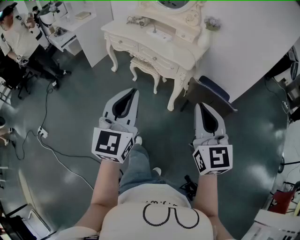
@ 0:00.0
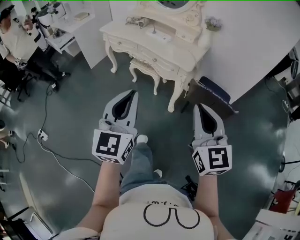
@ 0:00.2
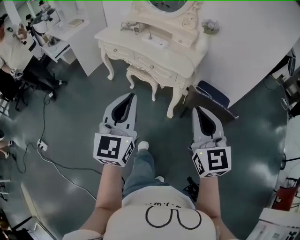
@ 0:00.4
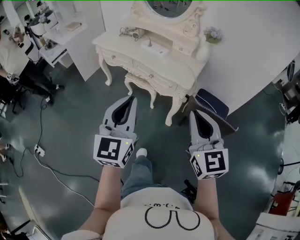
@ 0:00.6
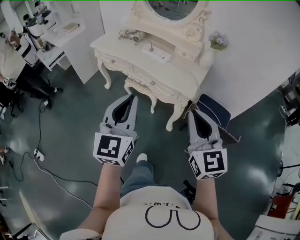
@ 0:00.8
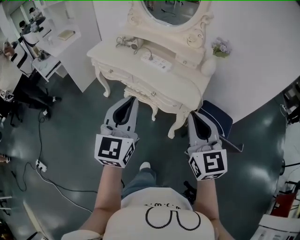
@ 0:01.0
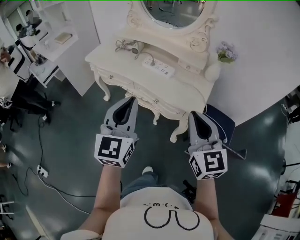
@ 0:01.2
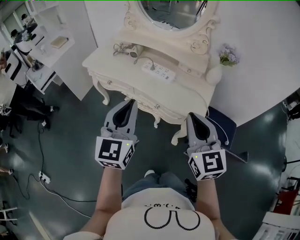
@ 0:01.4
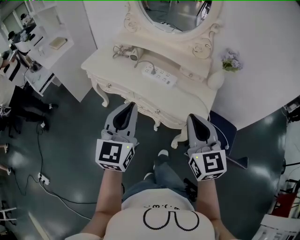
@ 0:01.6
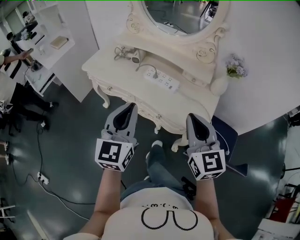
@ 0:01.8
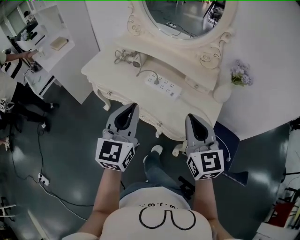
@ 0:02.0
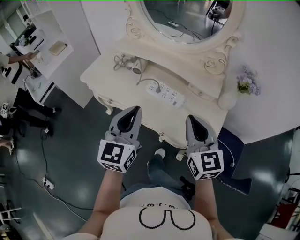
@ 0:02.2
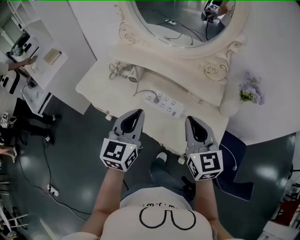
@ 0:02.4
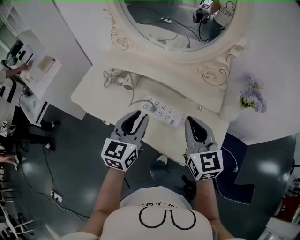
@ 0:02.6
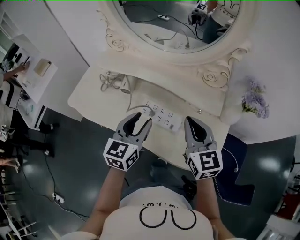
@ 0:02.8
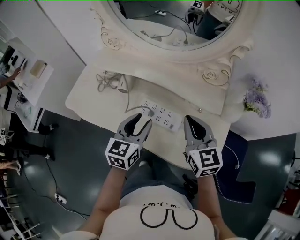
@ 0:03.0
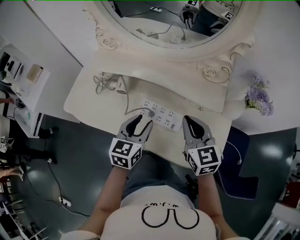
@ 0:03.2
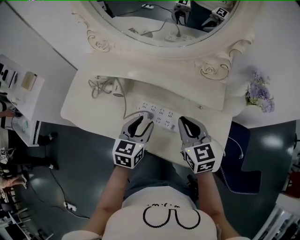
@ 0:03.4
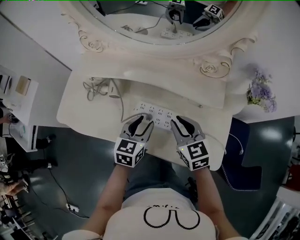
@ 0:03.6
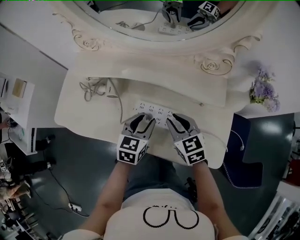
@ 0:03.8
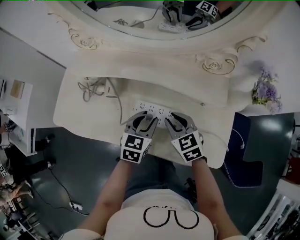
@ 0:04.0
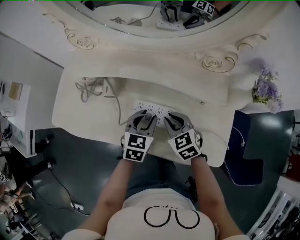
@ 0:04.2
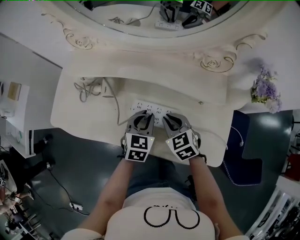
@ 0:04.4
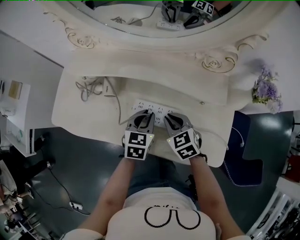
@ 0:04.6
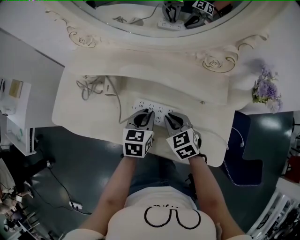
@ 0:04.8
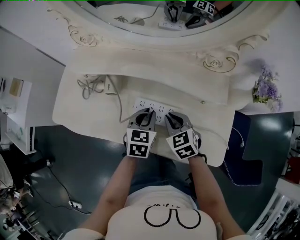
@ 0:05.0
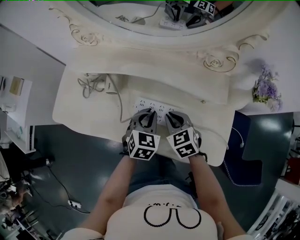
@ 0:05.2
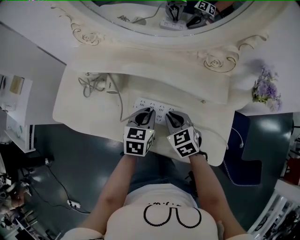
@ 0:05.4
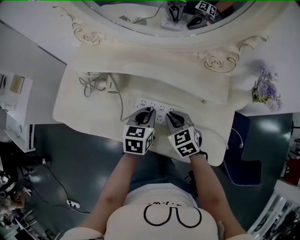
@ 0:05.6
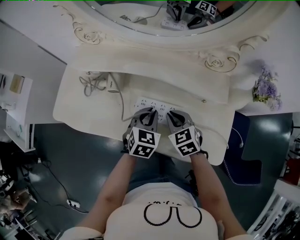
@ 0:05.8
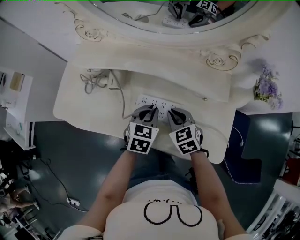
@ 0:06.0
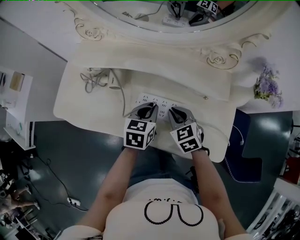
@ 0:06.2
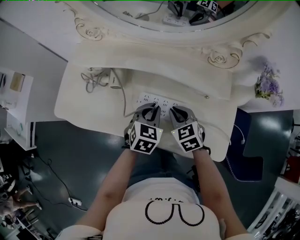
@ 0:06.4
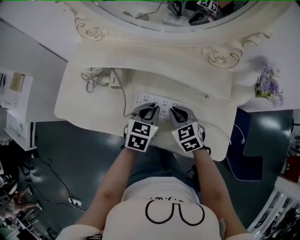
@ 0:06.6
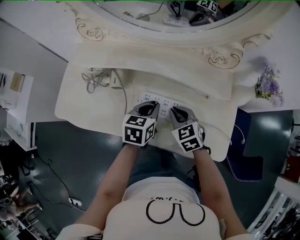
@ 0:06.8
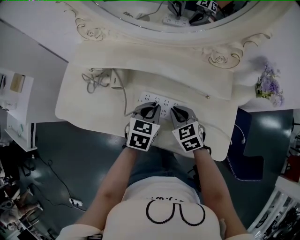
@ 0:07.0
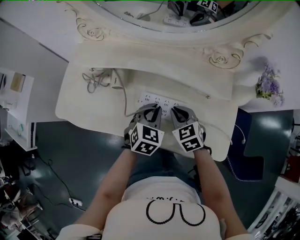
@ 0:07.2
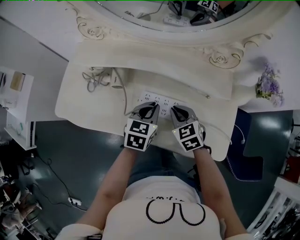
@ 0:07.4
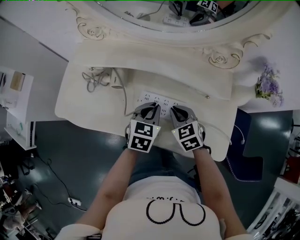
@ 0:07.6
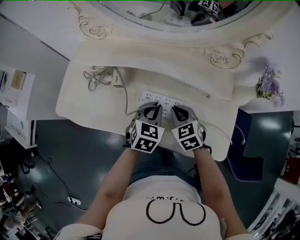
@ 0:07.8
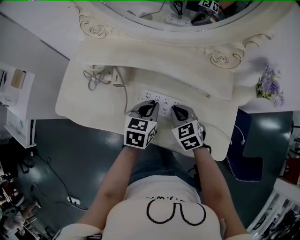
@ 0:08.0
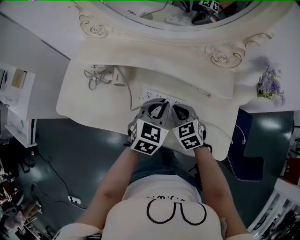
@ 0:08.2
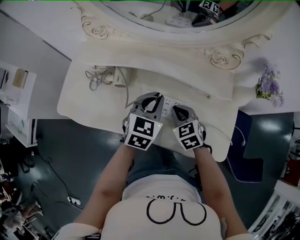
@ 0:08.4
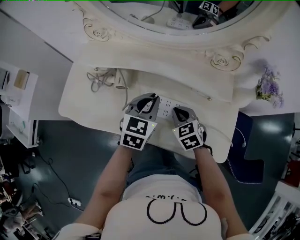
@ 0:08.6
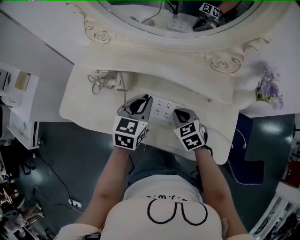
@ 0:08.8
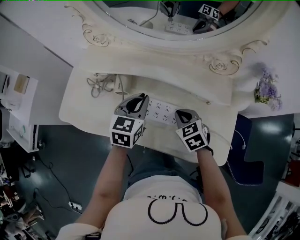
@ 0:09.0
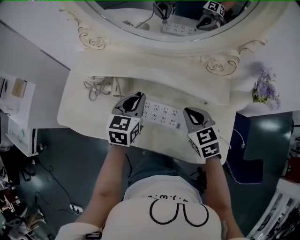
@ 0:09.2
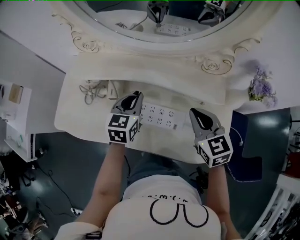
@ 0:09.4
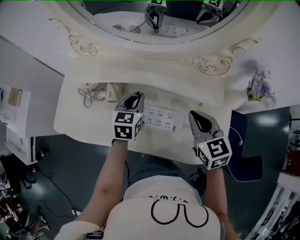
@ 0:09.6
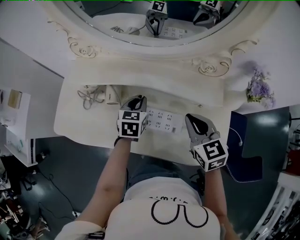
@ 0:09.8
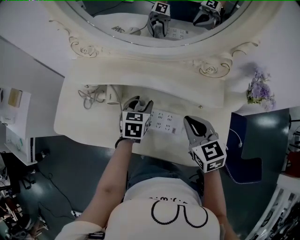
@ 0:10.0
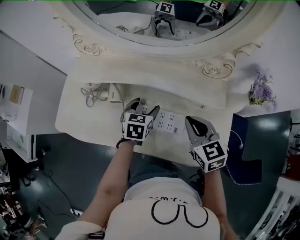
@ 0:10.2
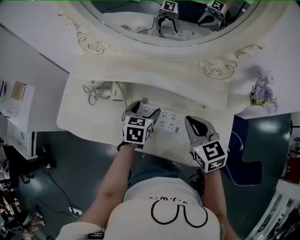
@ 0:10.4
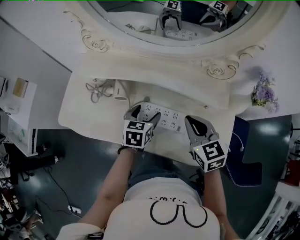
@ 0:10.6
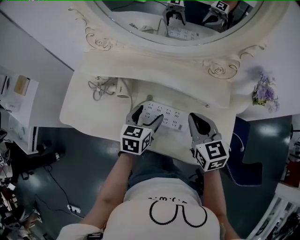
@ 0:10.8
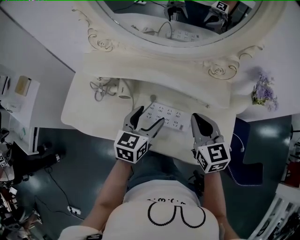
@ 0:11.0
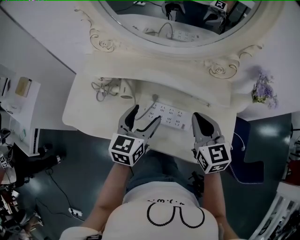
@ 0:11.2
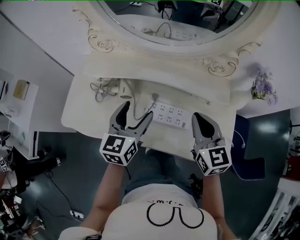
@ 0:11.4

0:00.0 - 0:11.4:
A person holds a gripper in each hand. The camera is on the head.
0:00.0 - 0:01.4: The two grippers travel together, forward, some 40 cm.
0:01.4 - 0:02.8: The grippers both shift forward by about 35 cm. The left gripper changes its angle by some 20 degrees, and opens up.
0:02.8 - 0:04.2: The right gripper moves downward, about 20 cm, and points its fingers about 30 degrees further downward. The left gripper moves downward and forward, roughly 20 cm, and swivels about 20 degrees.
0:04.2 - 0:05.6: The grippers move only a little.
0:05.6 - 0:07.2: The left gripper changes its angle by about 30 degrees.
0:07.2 - 0:08.6: The left gripper shifts some 5 cm upward.
0:08.6 - 0:10.0: The right gripper heads upward and to the right, covering approximately 15 cm, while the left gripper shifts about 10 cm downward and forward, and opens.
0:10.0 - 0:11.4: The right gripper heads upward, covering roughly 5 cm. The left gripper heads upward, backward and to the left, covering approximately 15 cm, changes its angle by some 20 degrees, and opens its fingers.

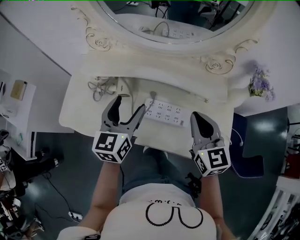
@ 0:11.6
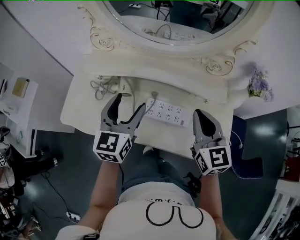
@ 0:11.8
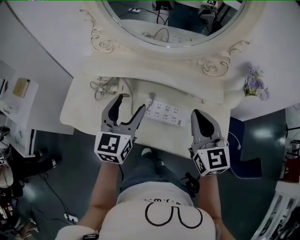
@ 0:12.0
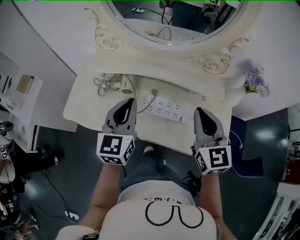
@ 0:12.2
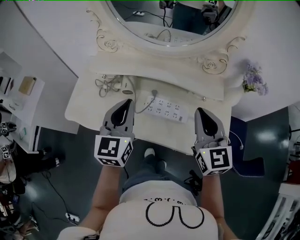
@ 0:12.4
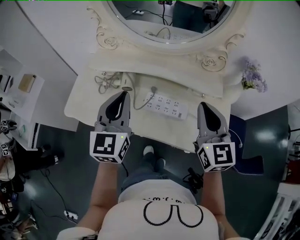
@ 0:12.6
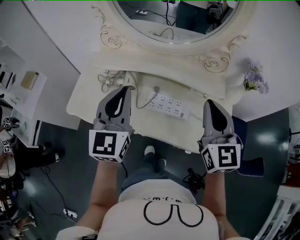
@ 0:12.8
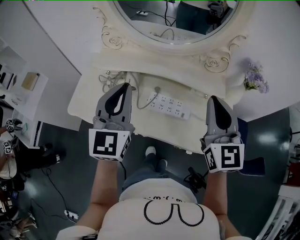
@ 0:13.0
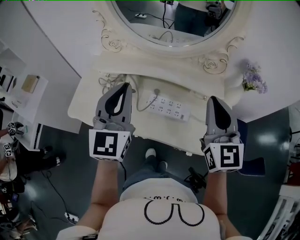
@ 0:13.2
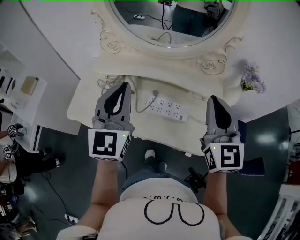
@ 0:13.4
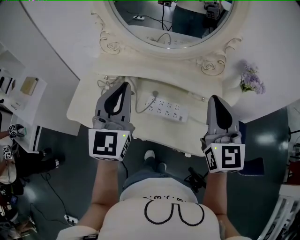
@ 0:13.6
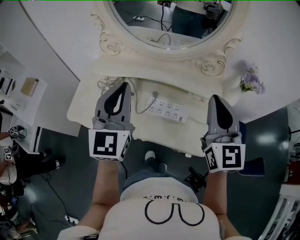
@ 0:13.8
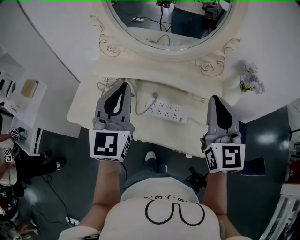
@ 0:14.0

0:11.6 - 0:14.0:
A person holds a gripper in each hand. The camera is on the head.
0:11.6 - 0:12.8: The left gripper travels upward and backward by some 15 cm, changes its angle by approximately 20 degrees, and closes, while the right gripper moves upward, roughly 10 cm.
0:12.8 - 0:14.0: The grippers stay close to where they were, moving slightly.

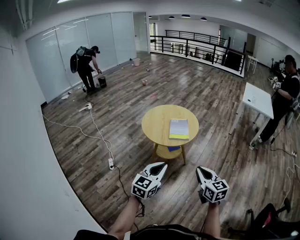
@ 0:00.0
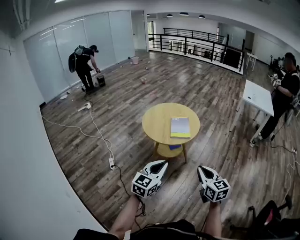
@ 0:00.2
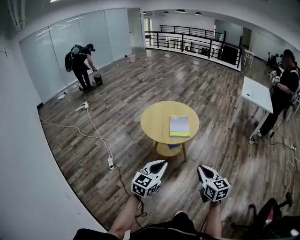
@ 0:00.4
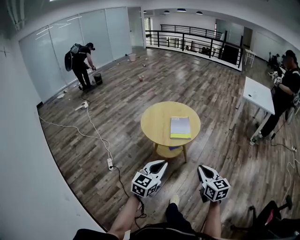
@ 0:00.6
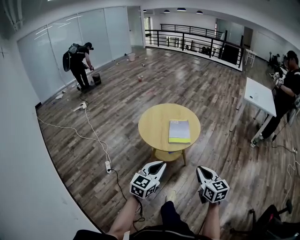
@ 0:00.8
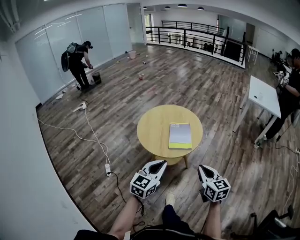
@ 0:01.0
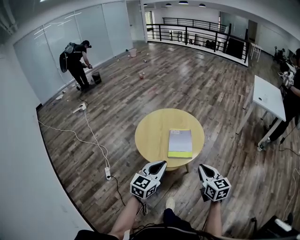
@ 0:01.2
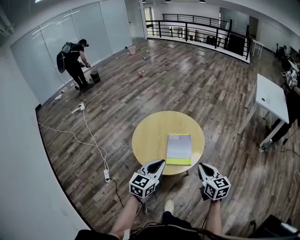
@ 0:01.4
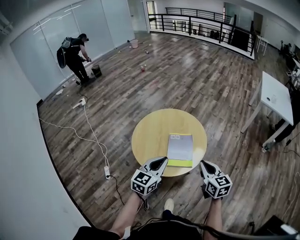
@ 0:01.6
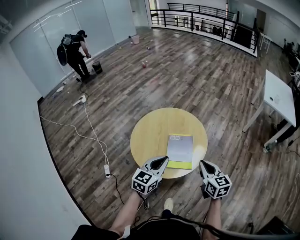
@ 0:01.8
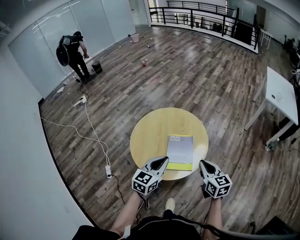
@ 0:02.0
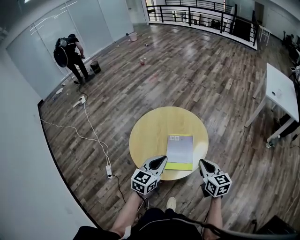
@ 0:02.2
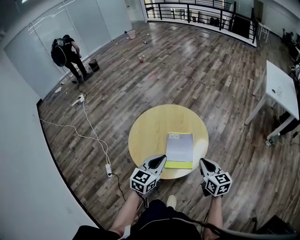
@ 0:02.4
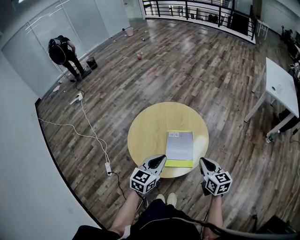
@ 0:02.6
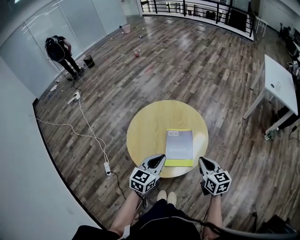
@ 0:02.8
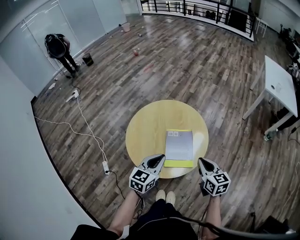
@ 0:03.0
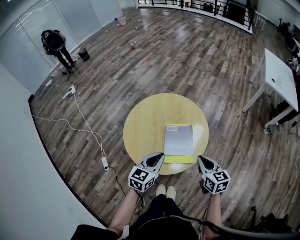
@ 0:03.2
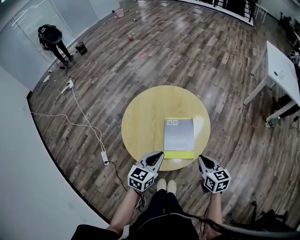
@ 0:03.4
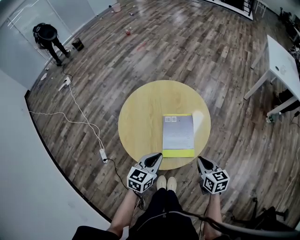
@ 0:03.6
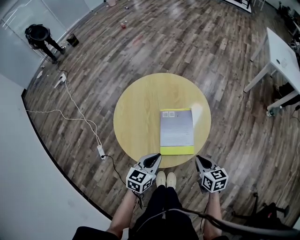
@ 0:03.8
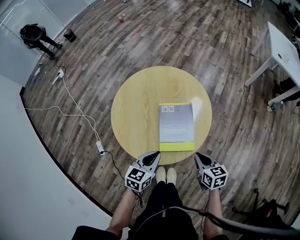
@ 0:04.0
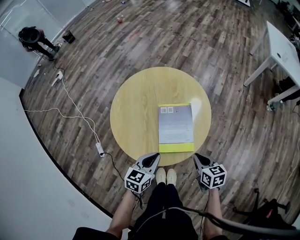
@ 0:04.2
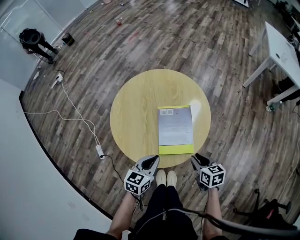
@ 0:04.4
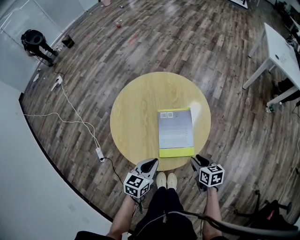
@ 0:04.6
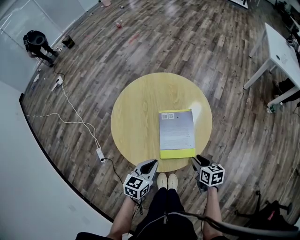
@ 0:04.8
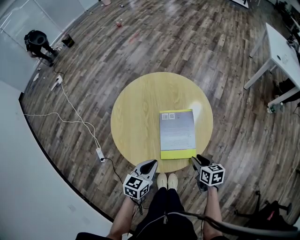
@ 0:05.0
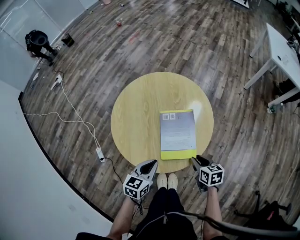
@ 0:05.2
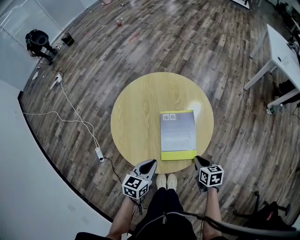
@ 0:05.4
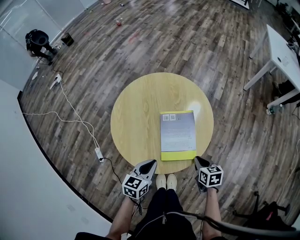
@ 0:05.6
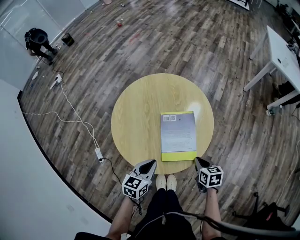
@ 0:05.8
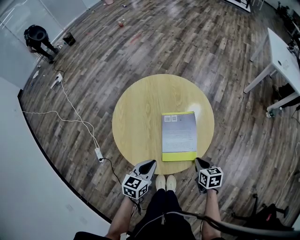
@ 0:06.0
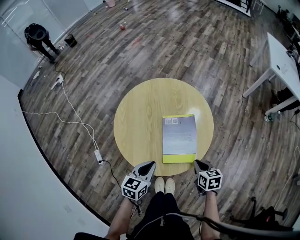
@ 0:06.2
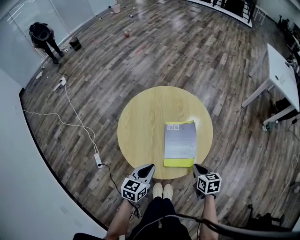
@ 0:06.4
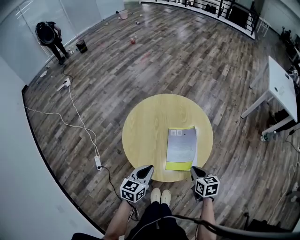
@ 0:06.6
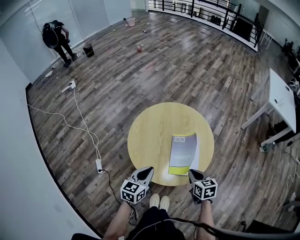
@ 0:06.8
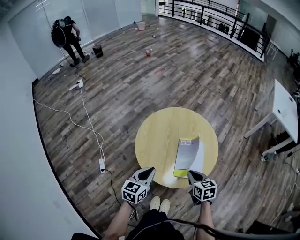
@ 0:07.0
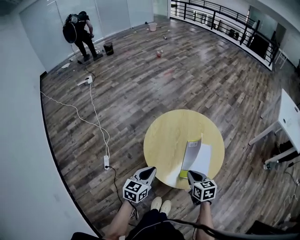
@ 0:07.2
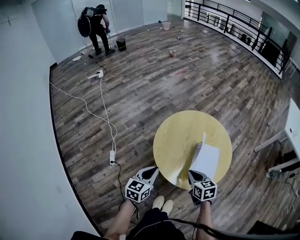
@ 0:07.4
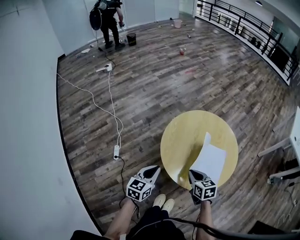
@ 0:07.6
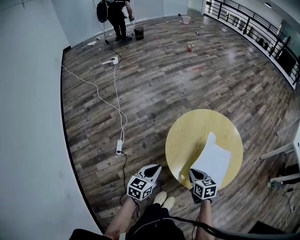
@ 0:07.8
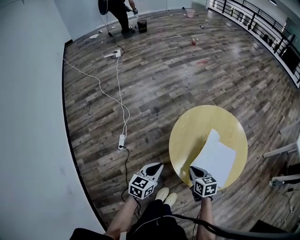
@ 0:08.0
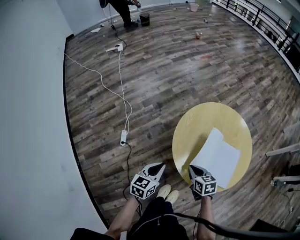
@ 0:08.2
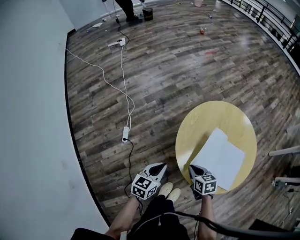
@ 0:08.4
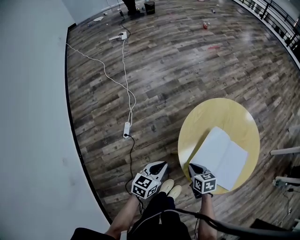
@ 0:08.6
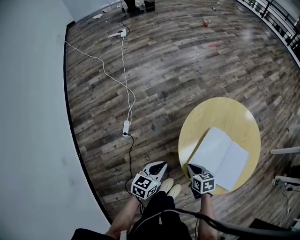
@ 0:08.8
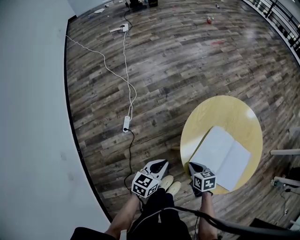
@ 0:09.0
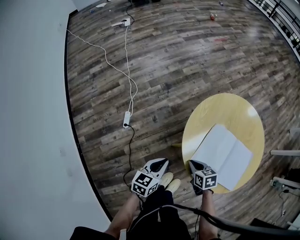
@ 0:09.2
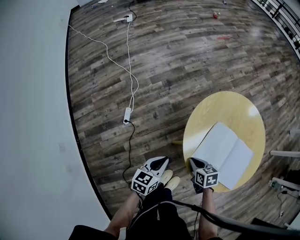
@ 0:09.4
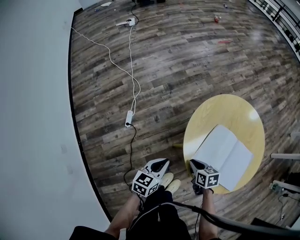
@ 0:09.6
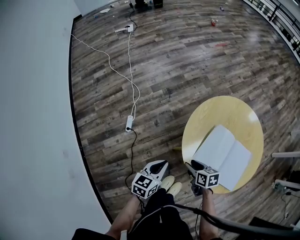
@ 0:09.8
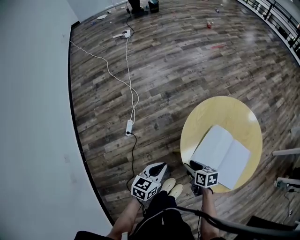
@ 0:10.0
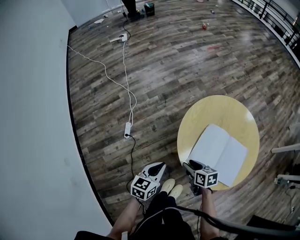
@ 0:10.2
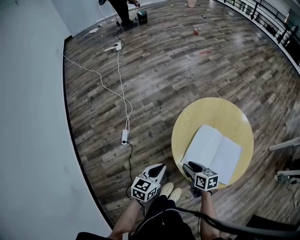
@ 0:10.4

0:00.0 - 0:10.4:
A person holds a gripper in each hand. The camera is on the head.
0:00.0 - 0:01.4: The two grippers go approximately 35 cm forward.
0:01.4 - 0:03.0: The grippers both shift forward and downward by some 15 cm.
0:03.0 - 0:04.4: Both grippers travel together downward, approximately 15 cm. The right gripper swivels about 20 degrees.
0:04.4 - 0:06.0: The grippers stay close to where they were, moving slightly.
0:06.0 - 0:07.4: The two grippers go approximately 20 cm to the left and upward. The right gripper swivels some 30 degrees; the left gripper changes its angle by some 20 degrees.
0:07.4 - 0:09.0: The grippers both shift downward and to the left by some 15 cm. The right gripper rotates roughly 20 degrees.
0:09.0 - 0:10.4: The right gripper shifts roughly 5 cm upward, and opens up; the left gripper shifts by approximately 5 cm.
